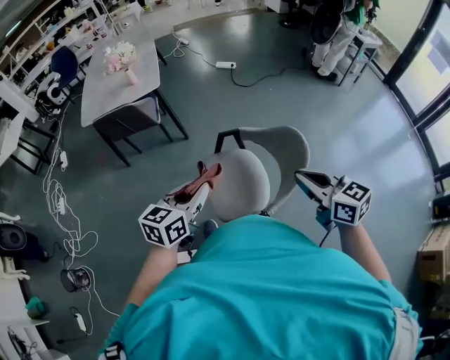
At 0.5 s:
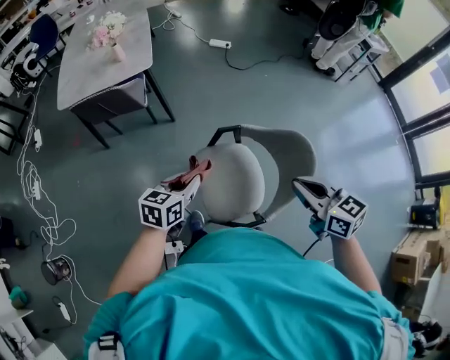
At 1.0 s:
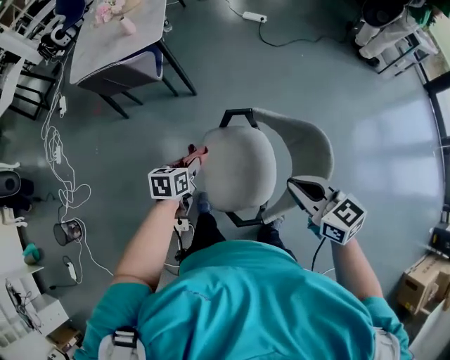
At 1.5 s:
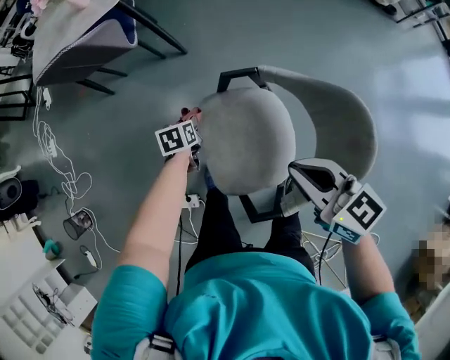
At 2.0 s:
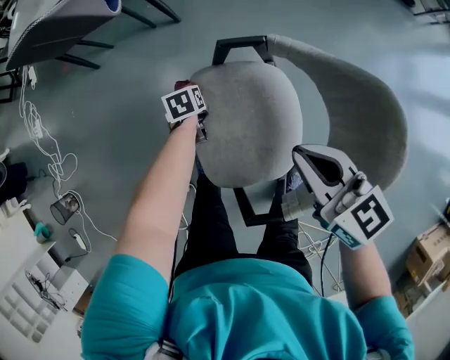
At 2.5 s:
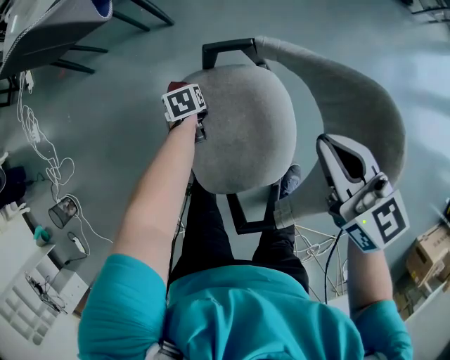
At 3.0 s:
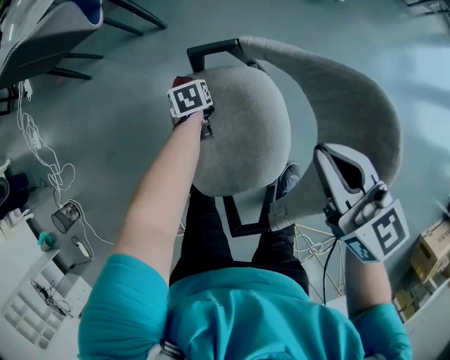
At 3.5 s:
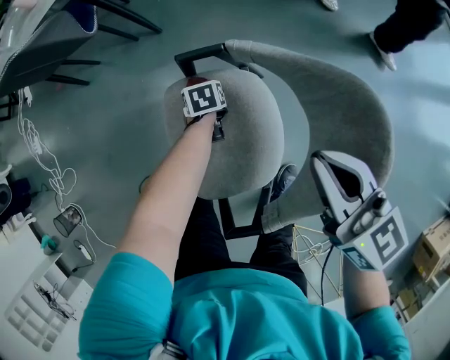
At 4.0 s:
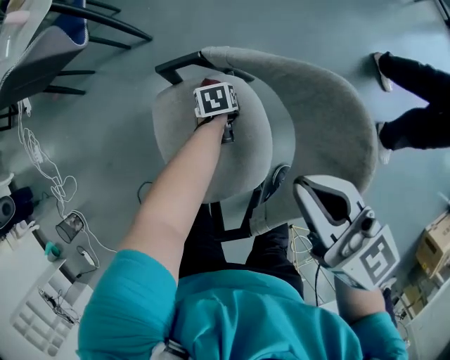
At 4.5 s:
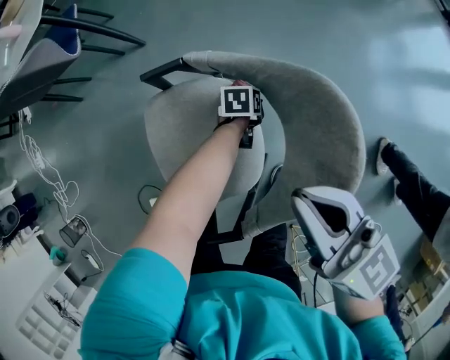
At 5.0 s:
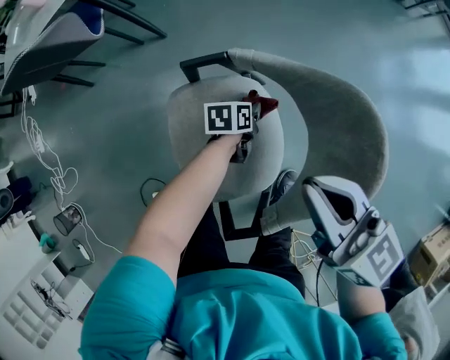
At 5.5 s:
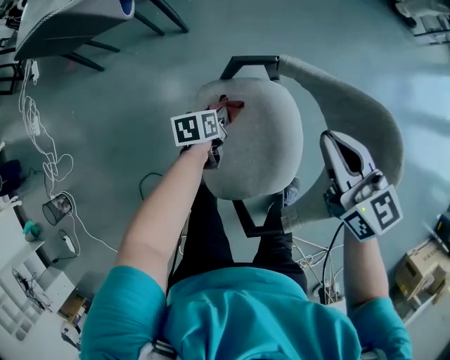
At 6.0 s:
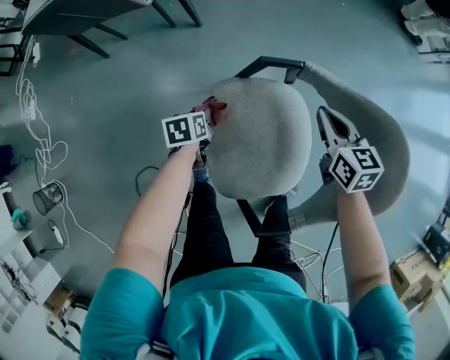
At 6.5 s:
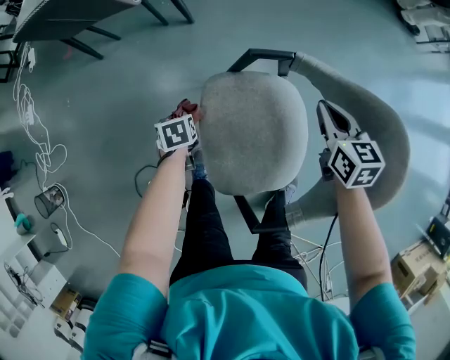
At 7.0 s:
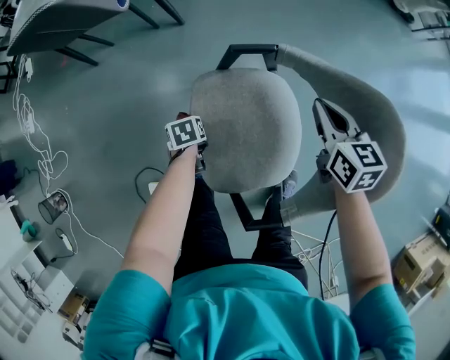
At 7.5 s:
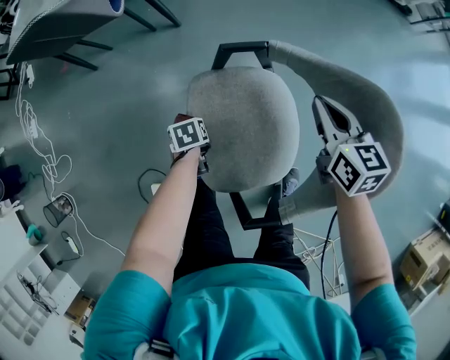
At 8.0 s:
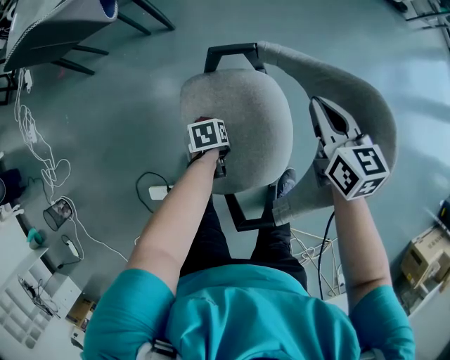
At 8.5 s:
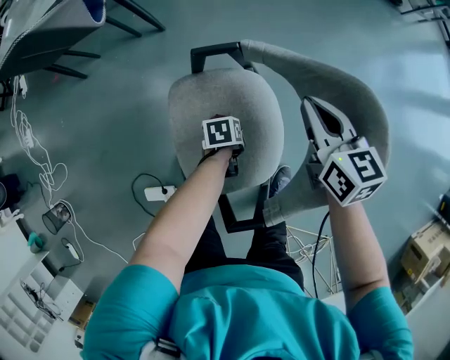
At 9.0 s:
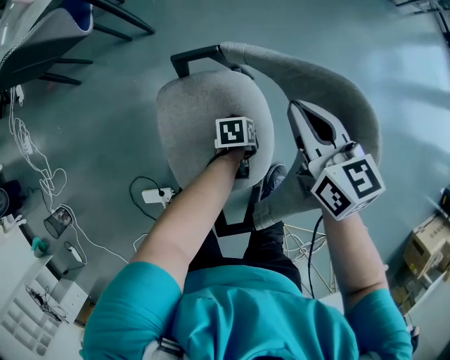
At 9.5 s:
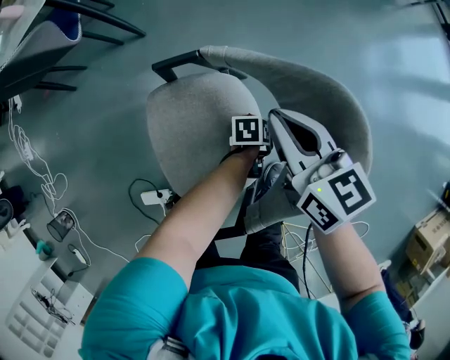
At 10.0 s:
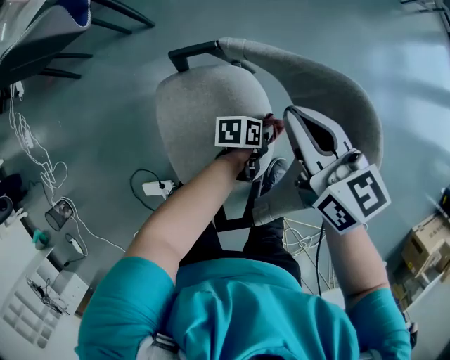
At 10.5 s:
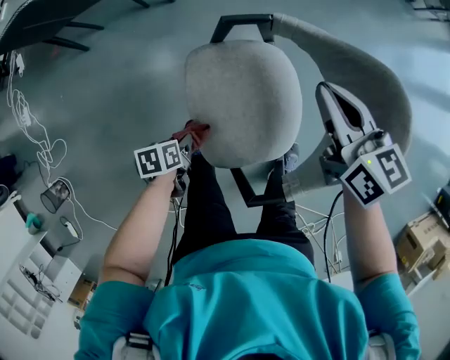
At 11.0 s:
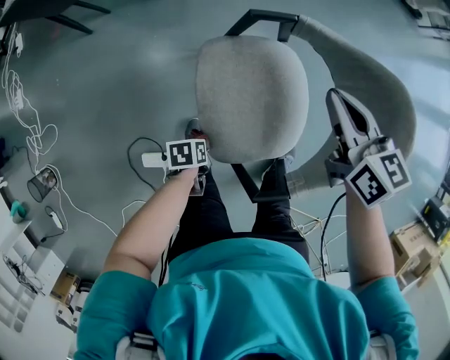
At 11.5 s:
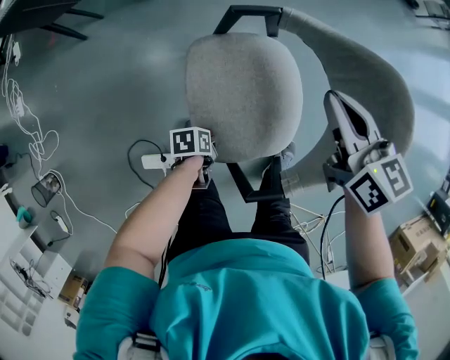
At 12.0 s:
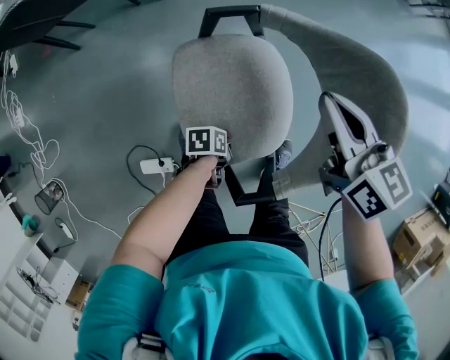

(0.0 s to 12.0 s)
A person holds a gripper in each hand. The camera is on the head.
0.0 s - 2.0 s: The right gripper goes approximately 35 cm downward; the left gripper is displaced downward by some 60 cm, and points its fingers approximately 50 degrees further downward.
2.0 s - 4.0 s: The left gripper travels to the right by about 25 cm, while the right gripper is displaced to the right by some 10 cm.
4.0 s - 6.0 s: The right gripper moves downward, forward and to the left, about 20 cm, and rotates about 20 degrees, while the left gripper goes about 25 cm to the left.
6.0 s - 8.0 s: The left gripper changes place by roughly 15 cm. The right gripper changes place by roughly 10 cm.
8.0 s - 10.0 s: The right gripper shifts some 5 cm upward; the left gripper moves roughly 25 cm, and tilts its fingers approximately 30 degrees upward.

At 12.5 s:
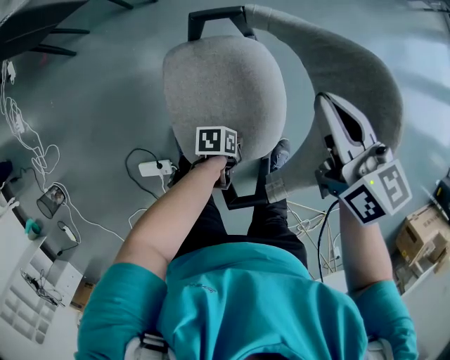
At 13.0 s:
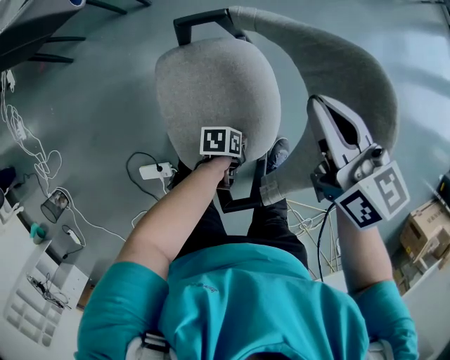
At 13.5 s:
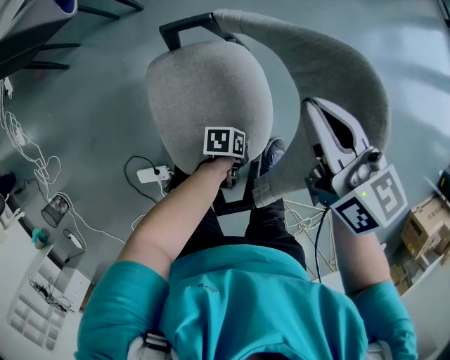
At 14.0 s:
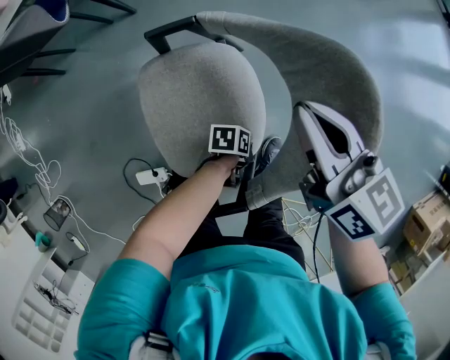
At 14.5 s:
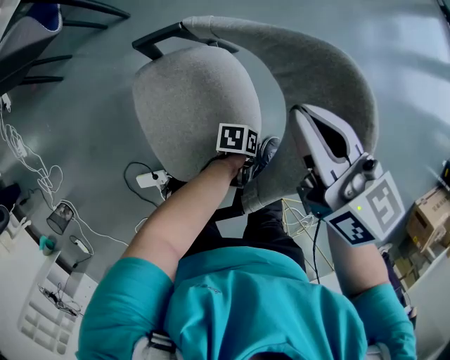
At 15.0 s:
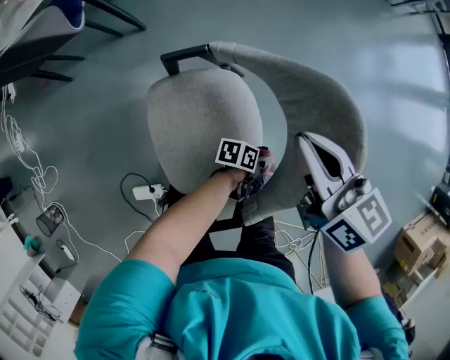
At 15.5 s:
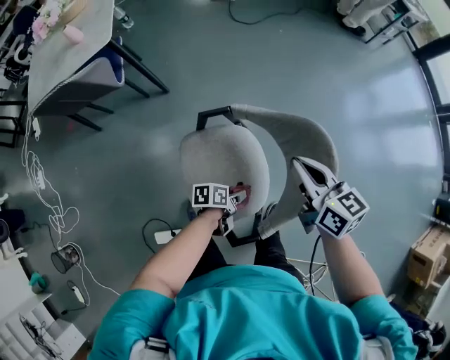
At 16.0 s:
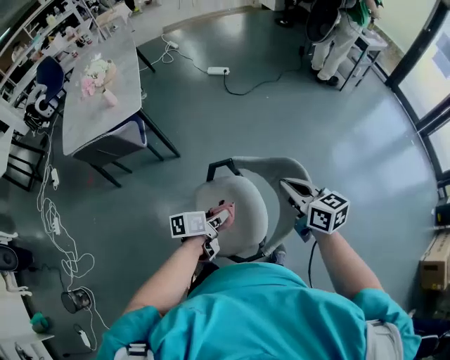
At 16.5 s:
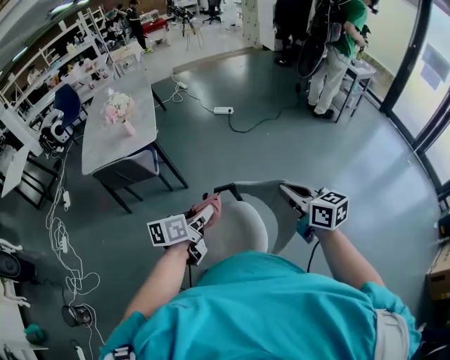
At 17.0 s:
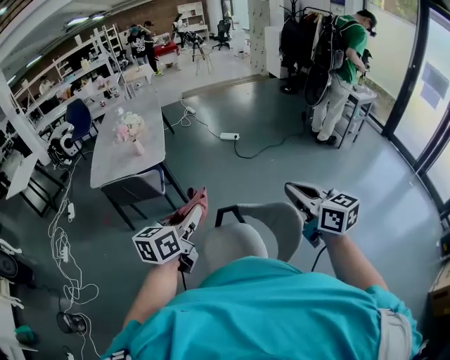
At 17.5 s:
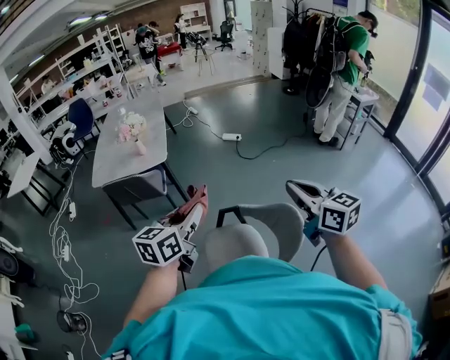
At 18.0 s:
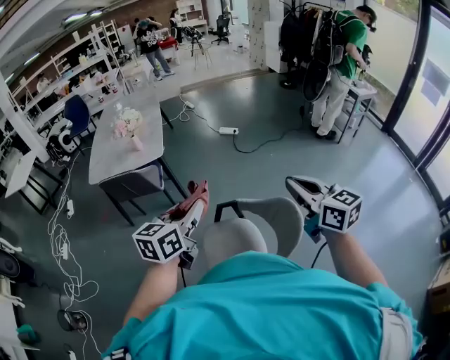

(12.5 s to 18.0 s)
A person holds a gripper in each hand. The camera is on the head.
12.5 s - 14.5 s: The left gripper moves roughly 15 cm. The right gripper shifts by roughly 5 cm.
14.5 s - 16.0 s: The left gripper travels upward by some 40 cm, and rotates some 40 degrees, while the right gripper moves upward, some 25 cm.
16.0 s - 18.0 s: The left gripper is displaced upward by roughly 35 cm, and rotates roughly 50 degrees. Meanwhile the right gripper shifts about 25 cm upward.

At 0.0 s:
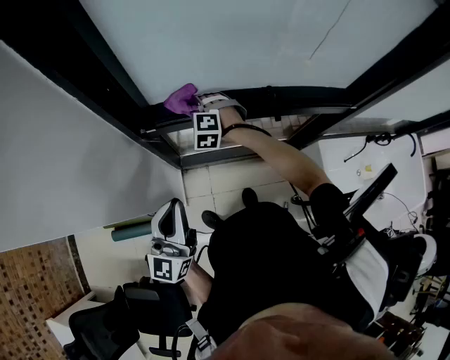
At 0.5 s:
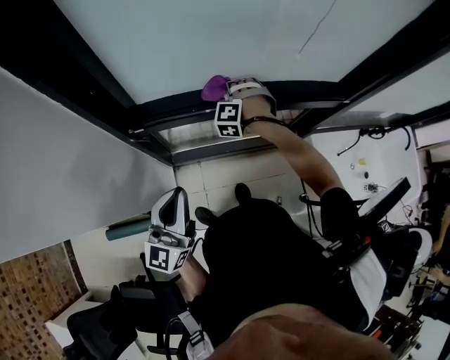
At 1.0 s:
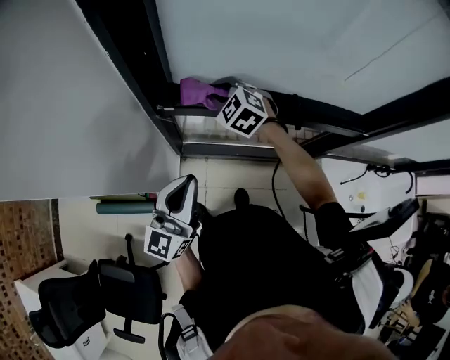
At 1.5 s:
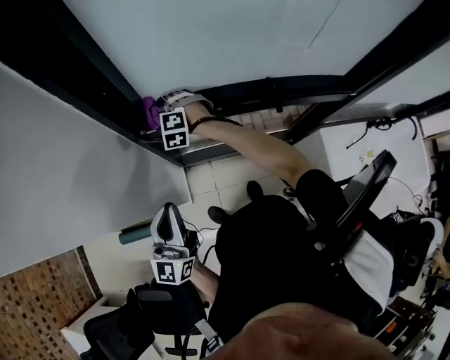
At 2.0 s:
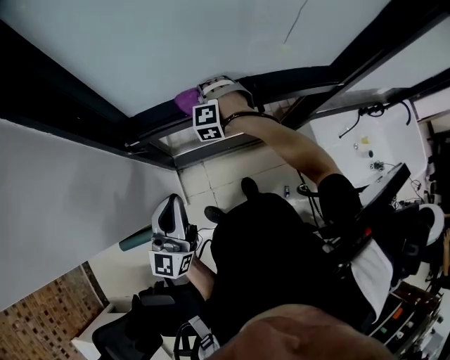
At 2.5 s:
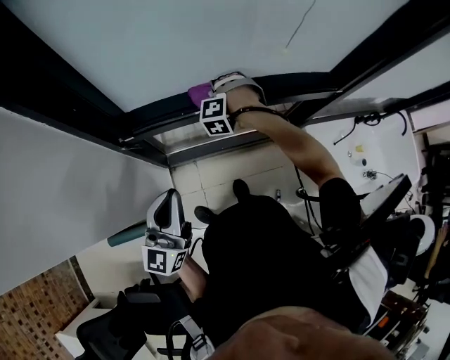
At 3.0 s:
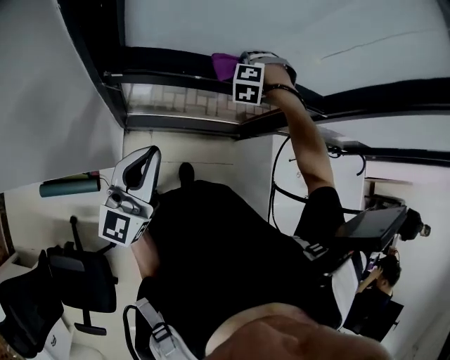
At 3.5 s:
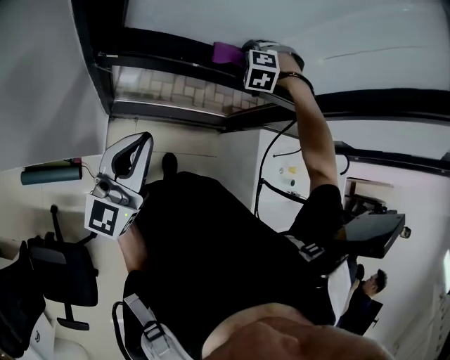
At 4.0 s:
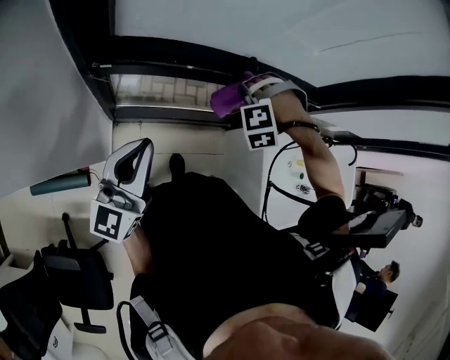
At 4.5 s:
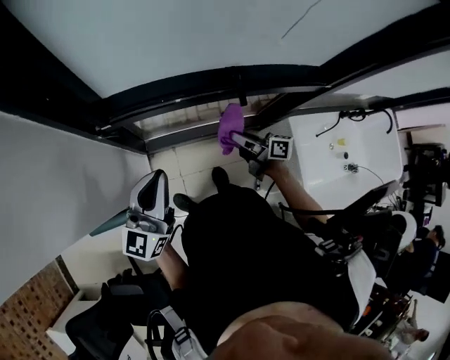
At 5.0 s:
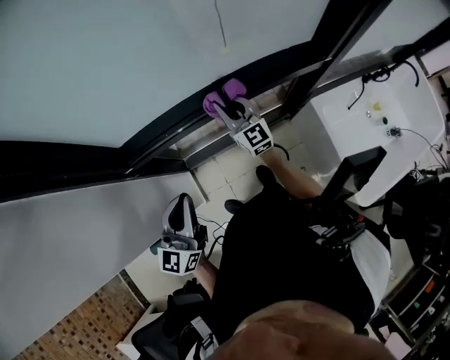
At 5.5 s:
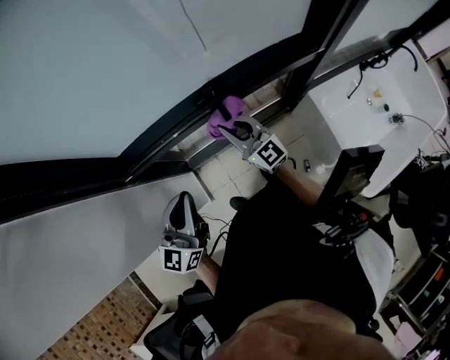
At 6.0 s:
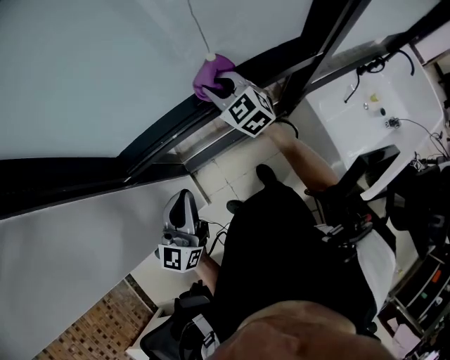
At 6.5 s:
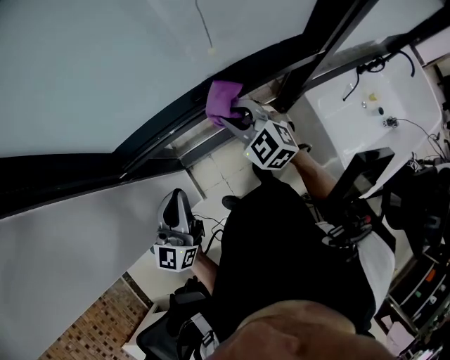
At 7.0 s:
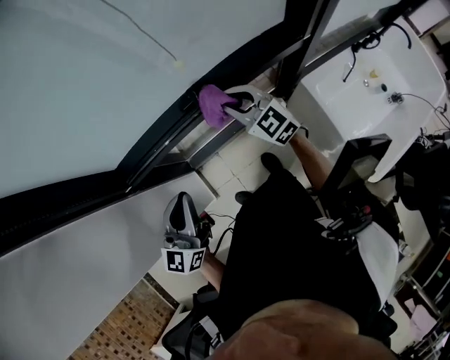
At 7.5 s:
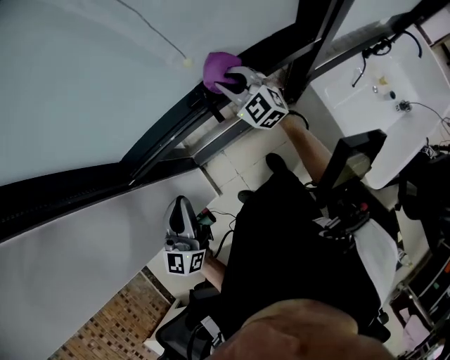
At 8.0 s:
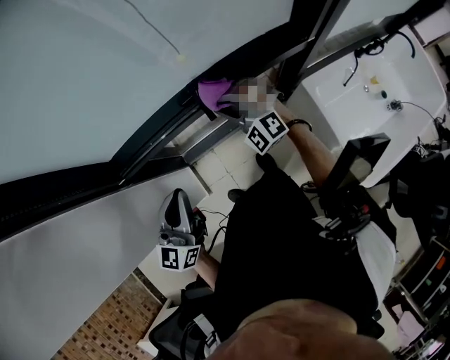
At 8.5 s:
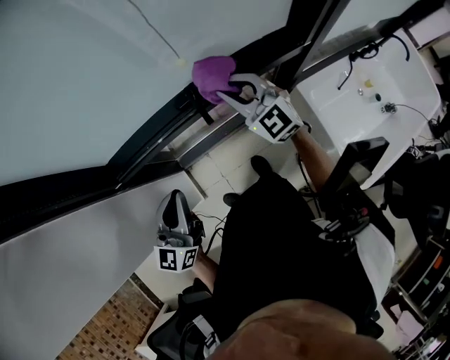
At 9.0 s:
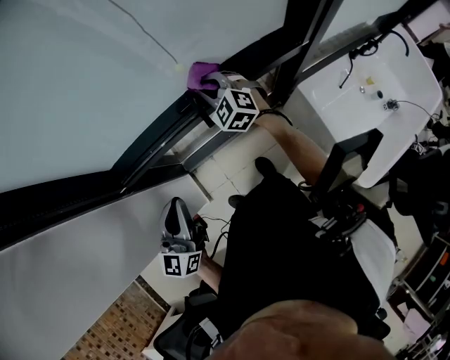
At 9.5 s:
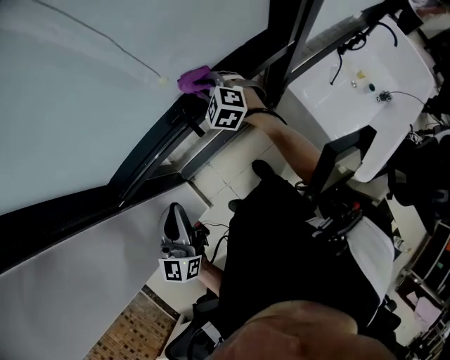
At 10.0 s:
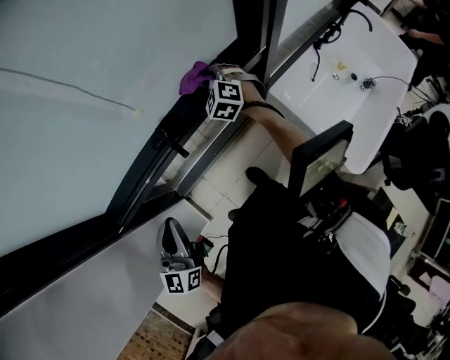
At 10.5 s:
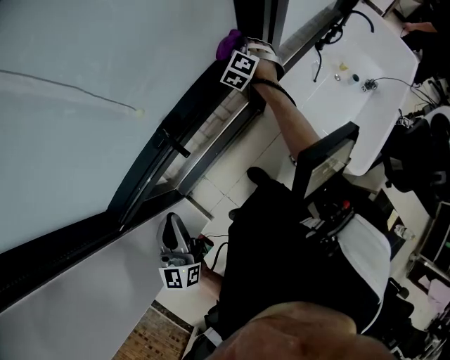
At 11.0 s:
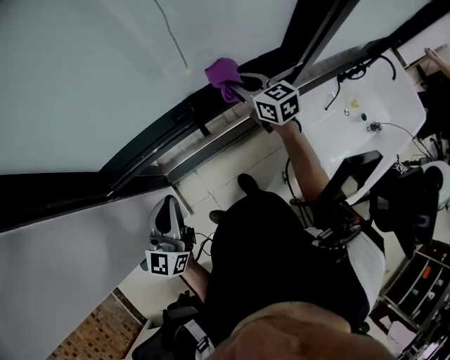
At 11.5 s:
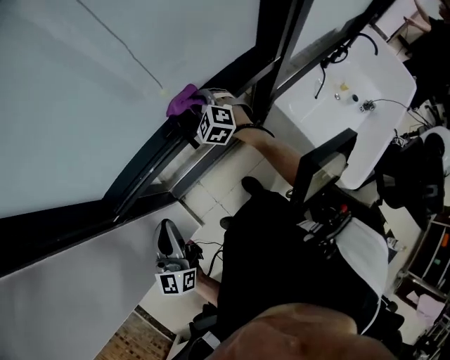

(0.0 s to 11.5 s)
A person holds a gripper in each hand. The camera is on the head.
0.0 s - 2.0 s: The right gripper goes upward and returns, roughly 10 cm each way, and changes its angle by roughly 20 degrees.
2.0 s - 4.0 s: The right gripper moves to the right and backward, about 20 cm, and turns by some 40 degrees.
4.0 s - 6.0 s: The right gripper ends up about 15 cm from where it was, and twists about 90 degrees clockwise, seen from behind; the left gripper shifts by some 10 cm.
6.0 s - 7.5 s: The right gripper shifts some 5 cm to the right, and travels backward and back again, roughly 10 cm each way.
7.5 s - 9.5 s: The right gripper goes backward and returns, approximately 10 cm each way, and changes its angle by approximately 30 degrees.
9.5 s - 11.5 s: The right gripper reaches some 5 cm upward, then returns.
